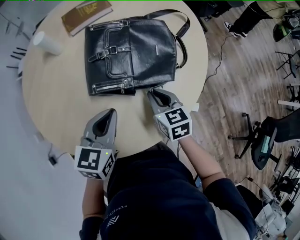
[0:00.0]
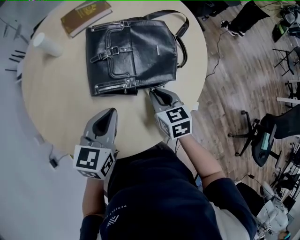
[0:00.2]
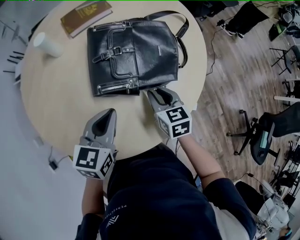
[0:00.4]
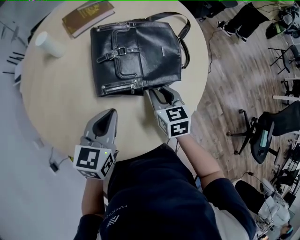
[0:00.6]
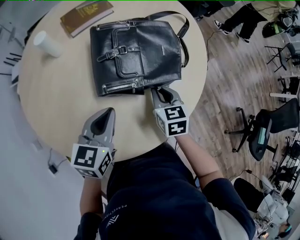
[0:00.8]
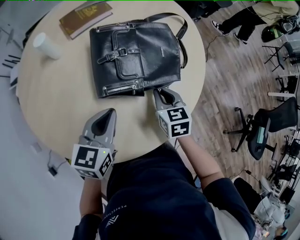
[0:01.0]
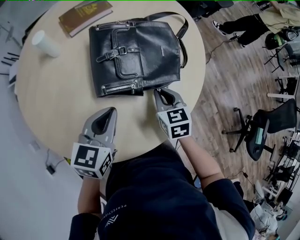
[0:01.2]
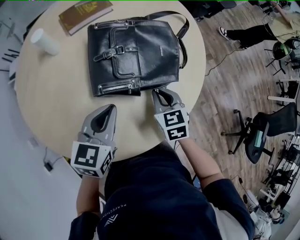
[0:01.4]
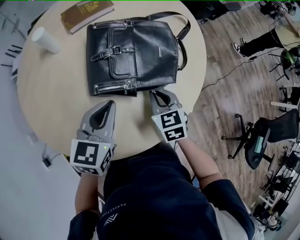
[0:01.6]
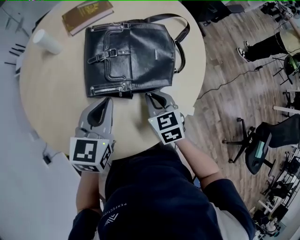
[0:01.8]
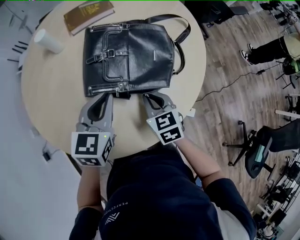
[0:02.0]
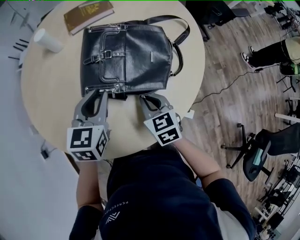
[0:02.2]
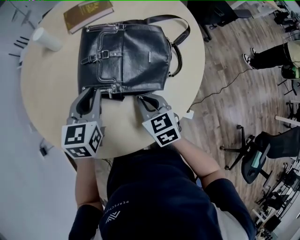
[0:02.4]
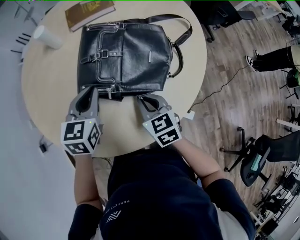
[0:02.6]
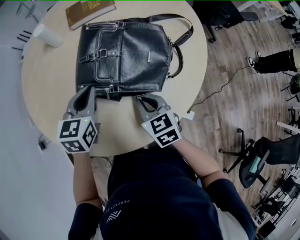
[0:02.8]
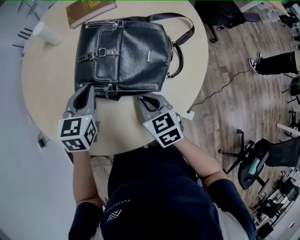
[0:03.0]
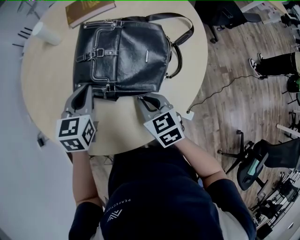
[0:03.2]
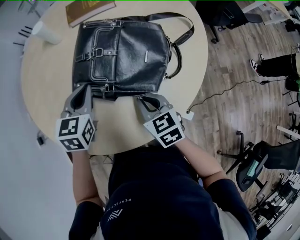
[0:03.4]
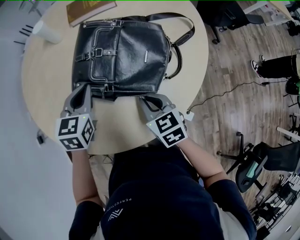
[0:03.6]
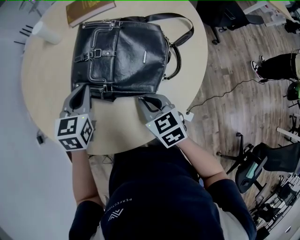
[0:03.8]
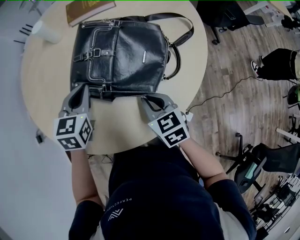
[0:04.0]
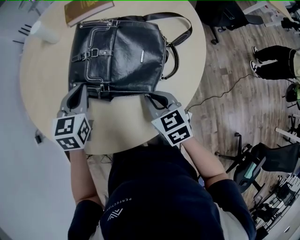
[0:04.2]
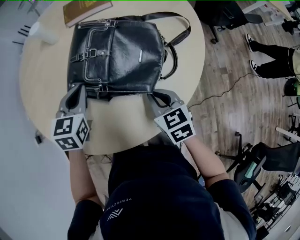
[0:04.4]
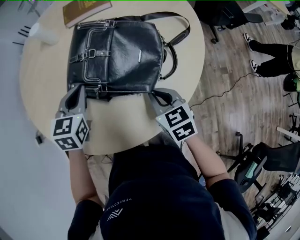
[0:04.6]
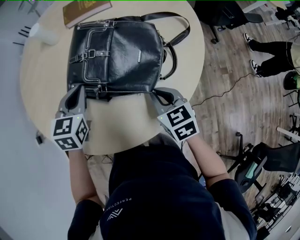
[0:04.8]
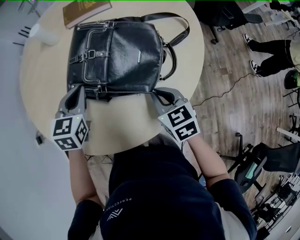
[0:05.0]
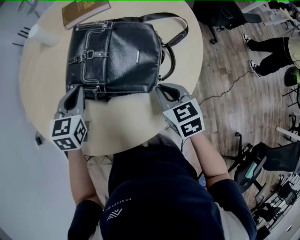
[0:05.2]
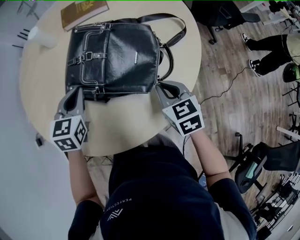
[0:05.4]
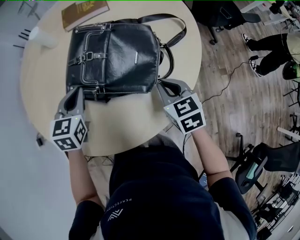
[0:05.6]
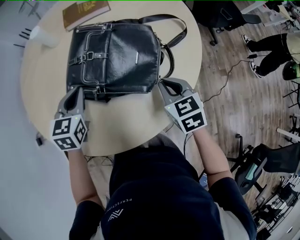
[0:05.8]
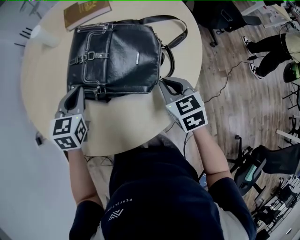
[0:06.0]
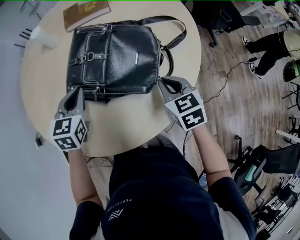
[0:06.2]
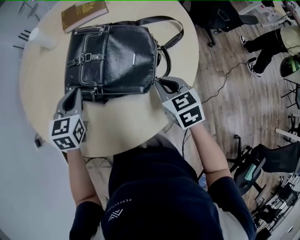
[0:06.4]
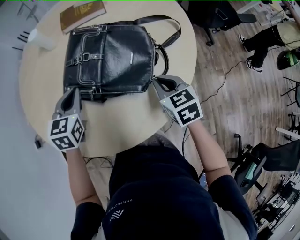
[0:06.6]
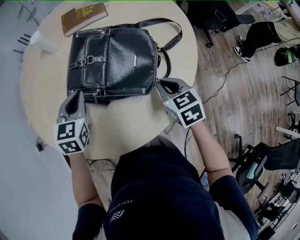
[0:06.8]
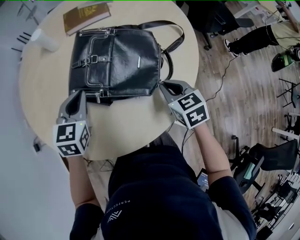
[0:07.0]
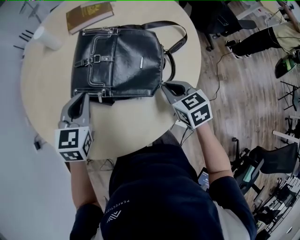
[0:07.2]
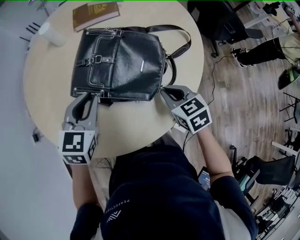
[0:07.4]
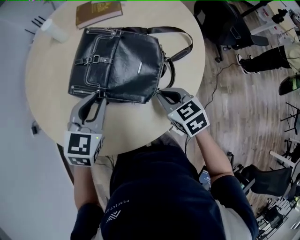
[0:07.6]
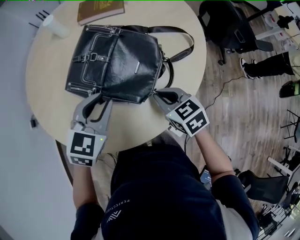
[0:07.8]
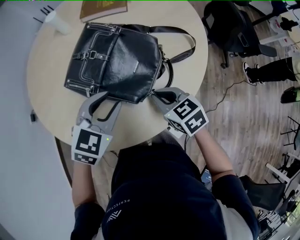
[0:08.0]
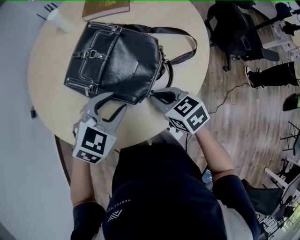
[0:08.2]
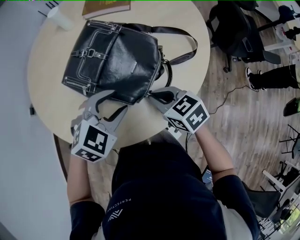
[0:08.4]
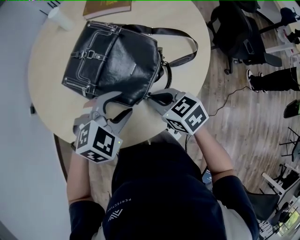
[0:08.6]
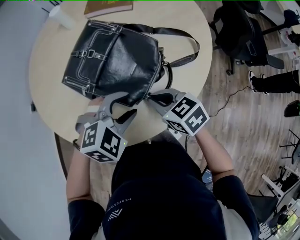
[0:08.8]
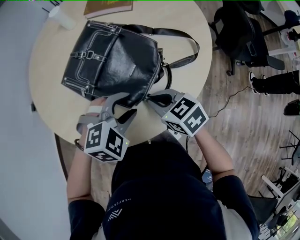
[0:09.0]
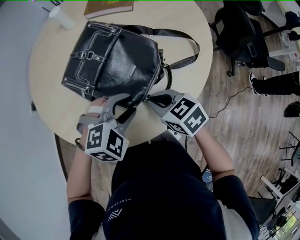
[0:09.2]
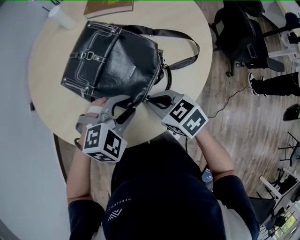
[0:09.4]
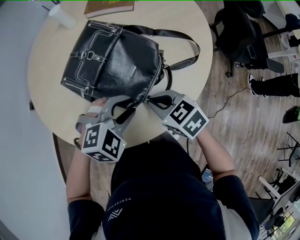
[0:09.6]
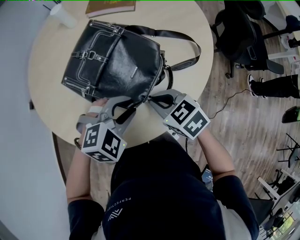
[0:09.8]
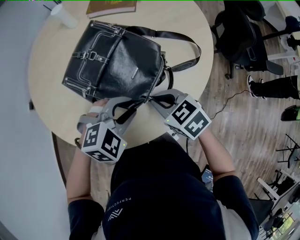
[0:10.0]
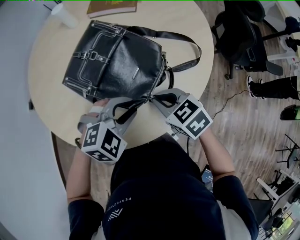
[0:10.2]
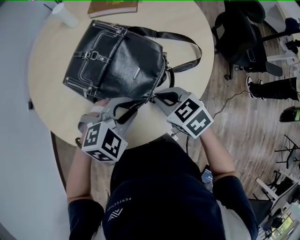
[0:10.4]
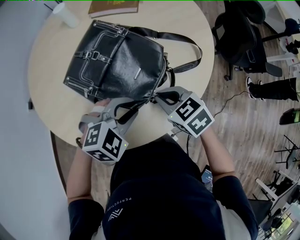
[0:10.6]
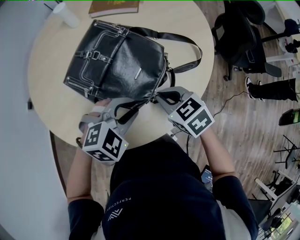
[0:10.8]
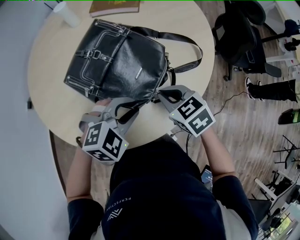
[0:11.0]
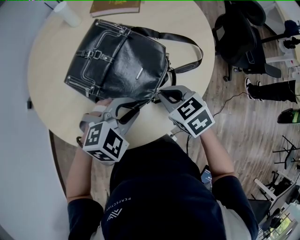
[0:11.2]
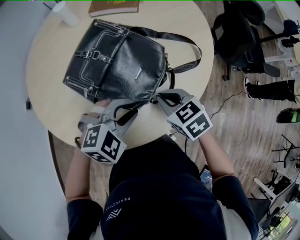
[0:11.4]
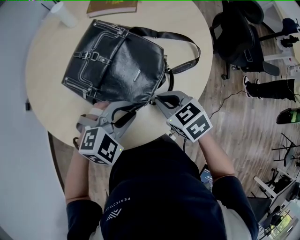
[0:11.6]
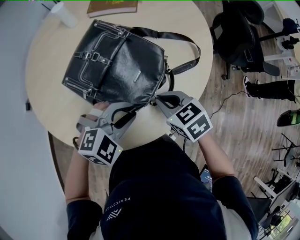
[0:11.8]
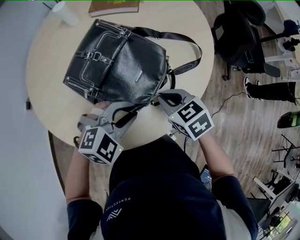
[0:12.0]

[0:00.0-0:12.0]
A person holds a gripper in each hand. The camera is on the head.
0:00.0 to 0:01.6: There are only small adjustments of the grippers.
0:01.6 to 0:03.0: The right gripper swivels about 20 degrees, while the left gripper shifts by approximately 5 cm, and rotates roughly 20 degrees.
0:03.0 to 0:04.4: The right gripper is displaced to the right by about 5 cm.
0:04.4 to 0:06.0: The right gripper goes about 5 cm to the right.
0:06.0 to 0:07.6: The left gripper moves to the right and backward, roughly 10 cm.
0:07.6 to 0:09.0: The right gripper changes its angle by approximately 20 degrees. Meanwhile the left gripper heads to the right and backward, covering roughly 15 cm, turns by some 40 degrees, and opens up.
0:09.0 to 0:10.4: The left gripper closes its fingers.
0:10.4 to 0:12.0: The grippers make only small movements.

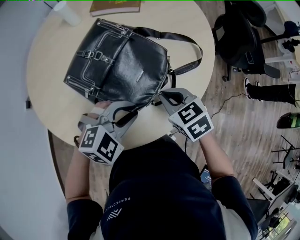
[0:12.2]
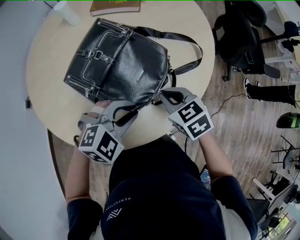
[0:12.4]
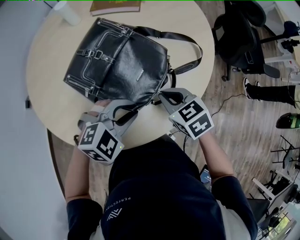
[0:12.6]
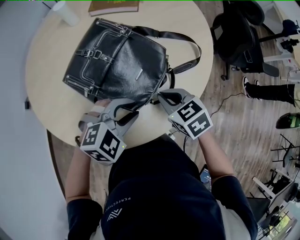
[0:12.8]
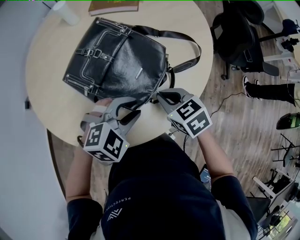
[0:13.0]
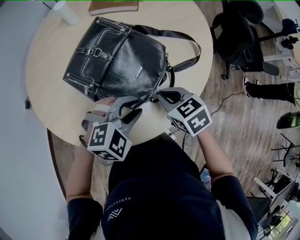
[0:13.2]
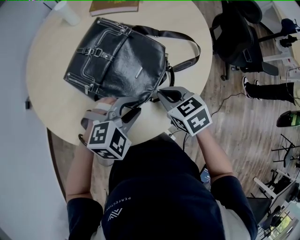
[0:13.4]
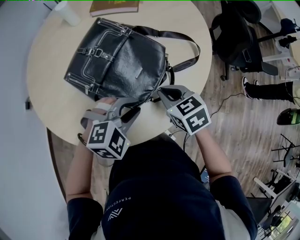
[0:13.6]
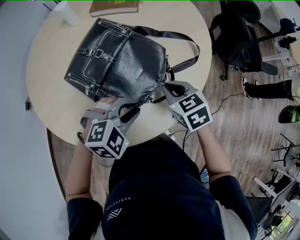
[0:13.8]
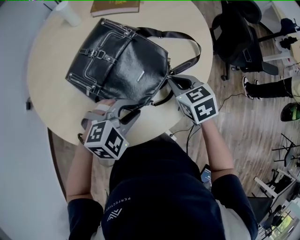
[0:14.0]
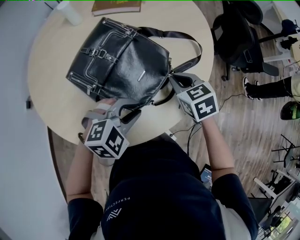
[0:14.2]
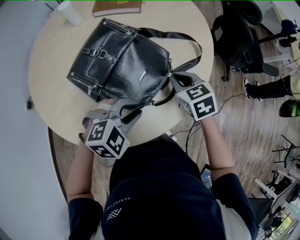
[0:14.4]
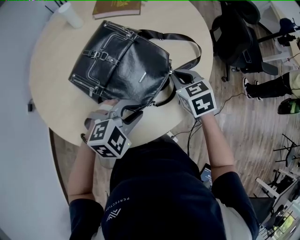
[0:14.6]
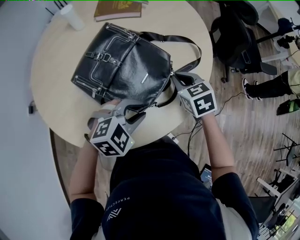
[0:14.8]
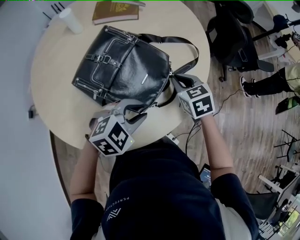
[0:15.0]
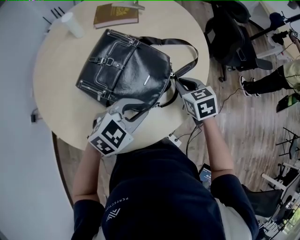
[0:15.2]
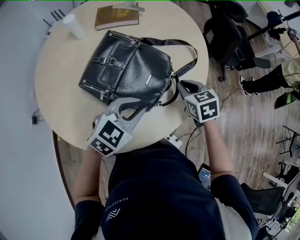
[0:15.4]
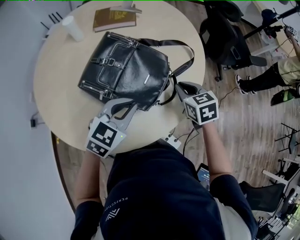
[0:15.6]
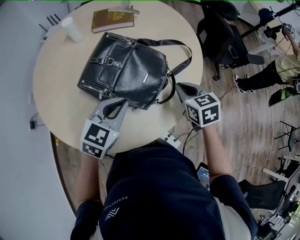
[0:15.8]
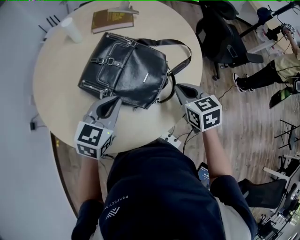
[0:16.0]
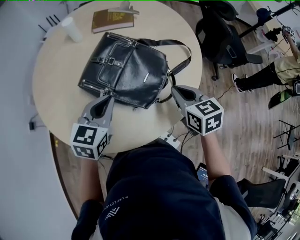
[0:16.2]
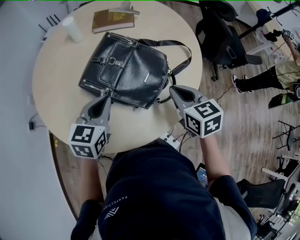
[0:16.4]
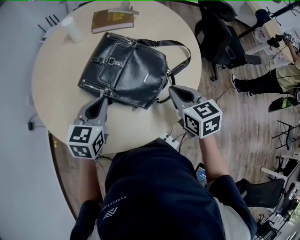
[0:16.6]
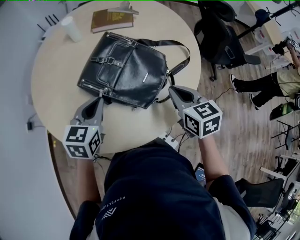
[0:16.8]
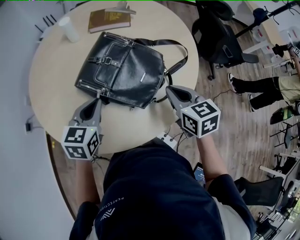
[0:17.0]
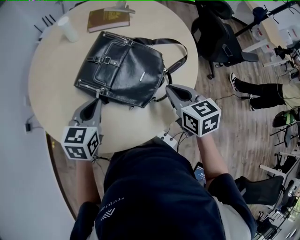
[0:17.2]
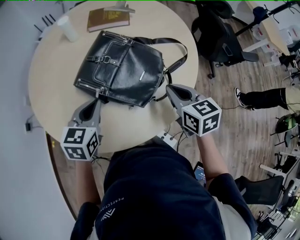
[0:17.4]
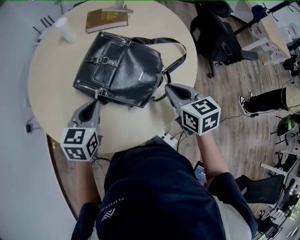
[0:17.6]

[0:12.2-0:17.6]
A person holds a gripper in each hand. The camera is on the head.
0:12.2 to 0:13.6: The grippers make only small movements.
0:13.6 to 0:15.0: The right gripper moves forward, about 5 cm.
0:15.0 to 0:16.2: The right gripper goes some 10 cm backward and upward, while the left gripper moves to the left and upward, some 15 cm, turns by some 40 degrees, and closes its fingers.
0:16.2 to 0:17.6: The grippers make only small movements.

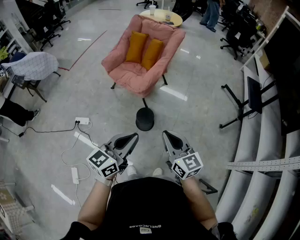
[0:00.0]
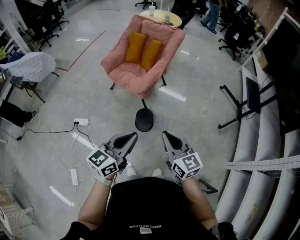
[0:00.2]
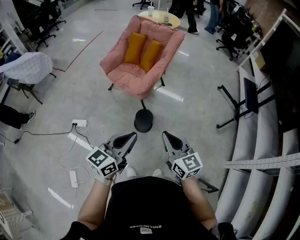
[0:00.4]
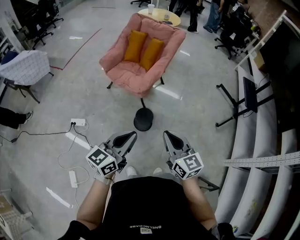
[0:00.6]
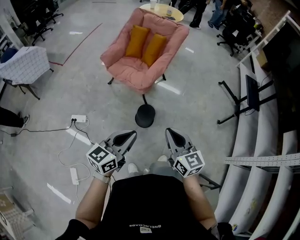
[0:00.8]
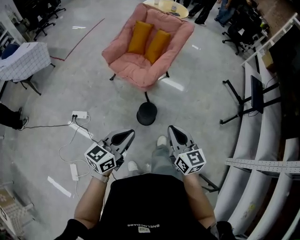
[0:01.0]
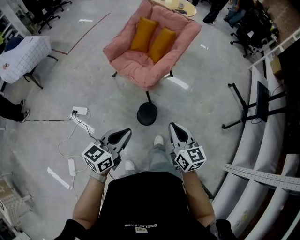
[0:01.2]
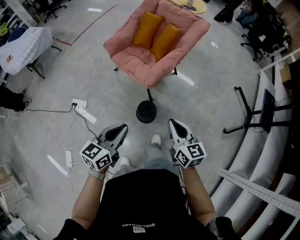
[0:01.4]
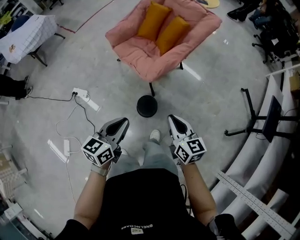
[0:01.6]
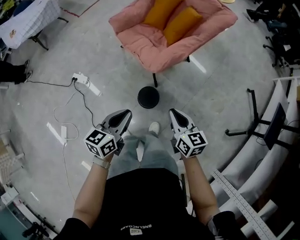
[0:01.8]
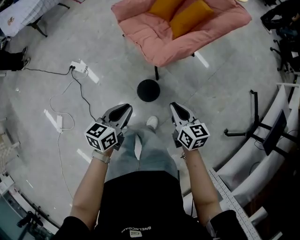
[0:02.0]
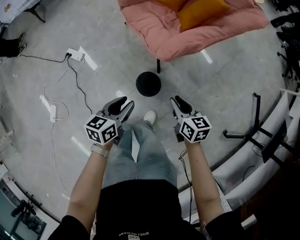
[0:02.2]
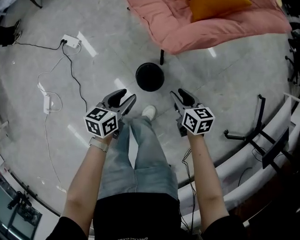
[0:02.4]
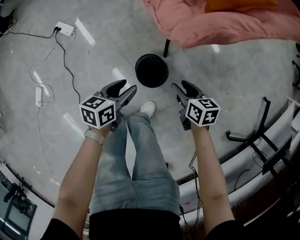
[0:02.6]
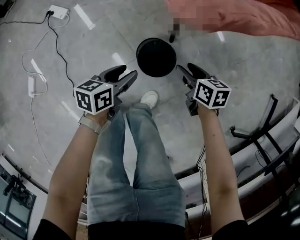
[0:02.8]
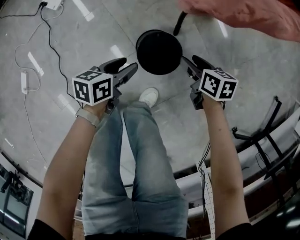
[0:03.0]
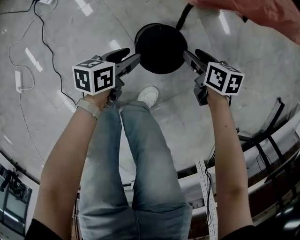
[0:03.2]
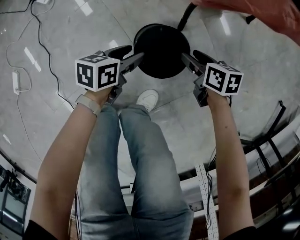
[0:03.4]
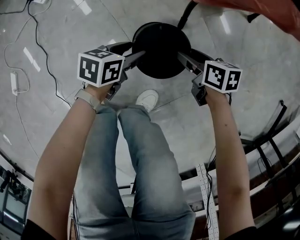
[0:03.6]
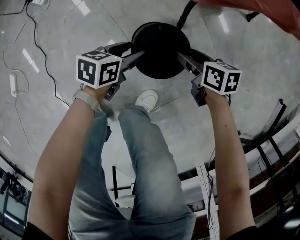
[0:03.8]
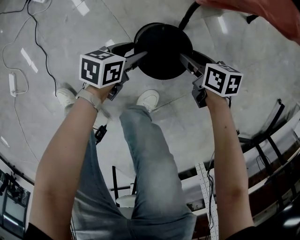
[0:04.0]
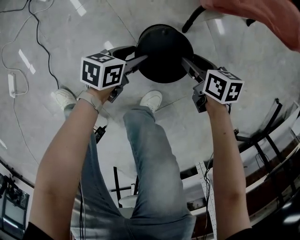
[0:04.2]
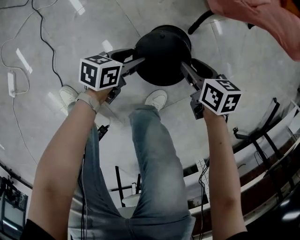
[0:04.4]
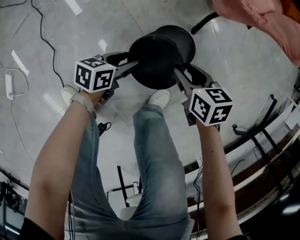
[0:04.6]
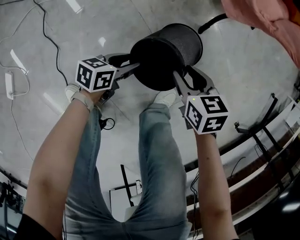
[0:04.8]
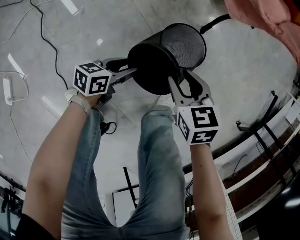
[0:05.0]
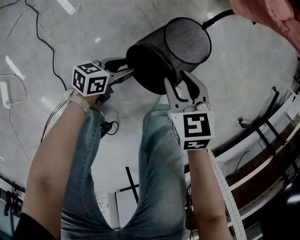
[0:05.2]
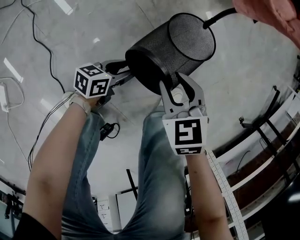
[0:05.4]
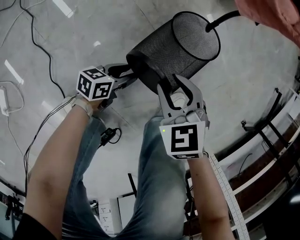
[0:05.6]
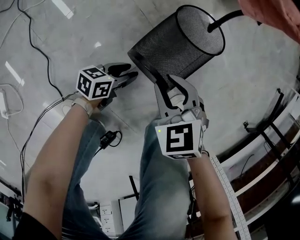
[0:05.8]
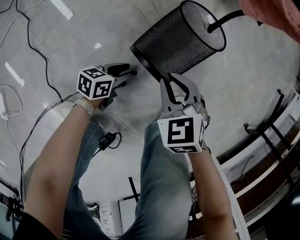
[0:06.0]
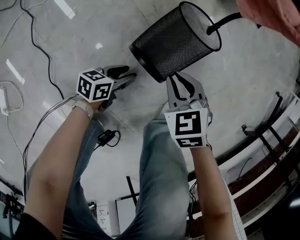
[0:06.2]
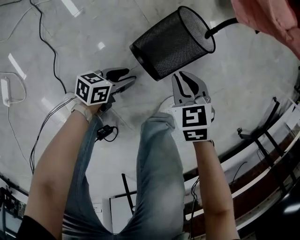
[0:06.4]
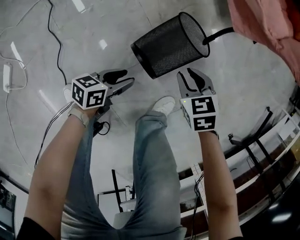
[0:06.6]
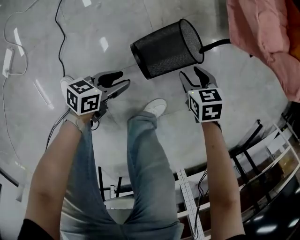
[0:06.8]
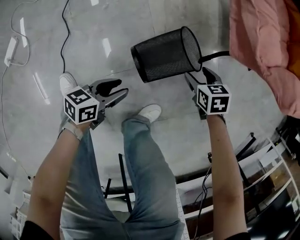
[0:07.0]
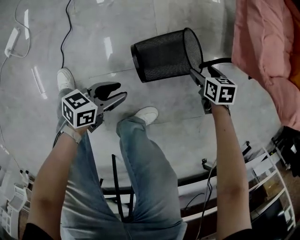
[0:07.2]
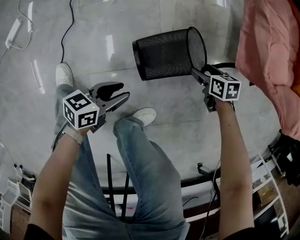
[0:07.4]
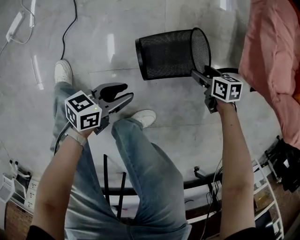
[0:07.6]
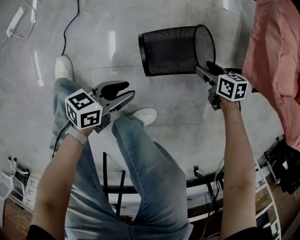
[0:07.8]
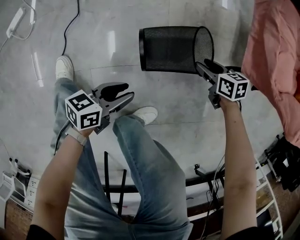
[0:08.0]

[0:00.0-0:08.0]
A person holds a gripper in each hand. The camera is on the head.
0:00.0 to 0:01.6: Both grippers move forward and downward, some 25 cm. The left gripper changes its angle by roughly 30 degrees.
0:01.6 to 0:03.2: The grippers both shift downward by about 60 cm. The left gripper turns by roughly 40 degrees, and opens; the right gripper tilts its fingers about 30 degrees downward, and opens up.
0:03.2 to 0:04.8: The right gripper travels to the left and backward by roughly 20 cm, and changes its angle by about 20 degrees. The left gripper moves to the left, downward and backward, about 15 cm.
0:04.8 to 0:06.4: The left gripper travels downward and backward by about 10 cm; the right gripper goes roughly 5 cm downward, and rotates approximately 20 degrees.
0:06.4 to 0:08.0: The left gripper moves upward, approximately 10 cm, and rotates approximately 30 degrees; the right gripper moves some 15 cm, swivels roughly 30 degrees, and opens its fingers.
